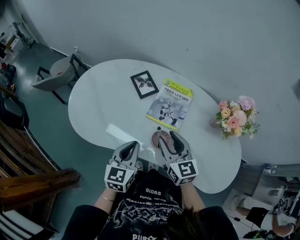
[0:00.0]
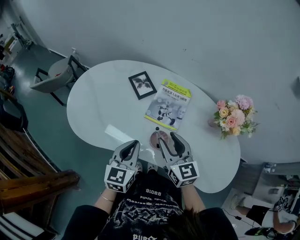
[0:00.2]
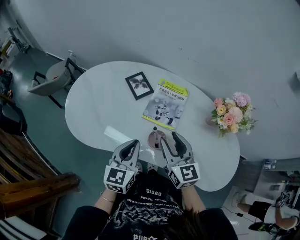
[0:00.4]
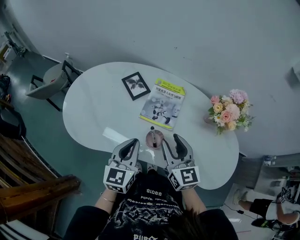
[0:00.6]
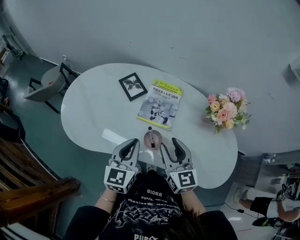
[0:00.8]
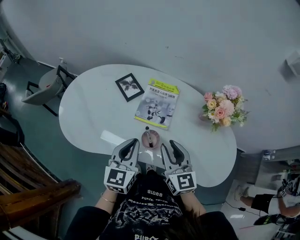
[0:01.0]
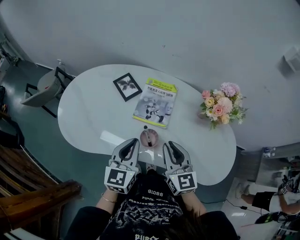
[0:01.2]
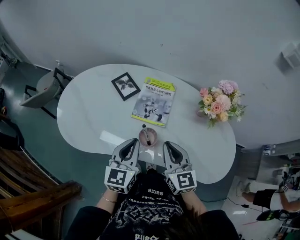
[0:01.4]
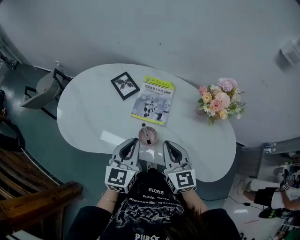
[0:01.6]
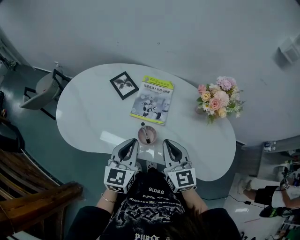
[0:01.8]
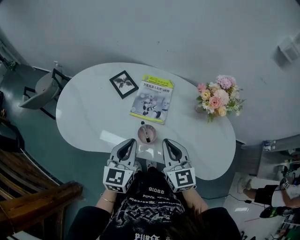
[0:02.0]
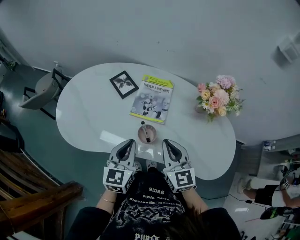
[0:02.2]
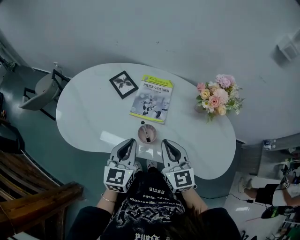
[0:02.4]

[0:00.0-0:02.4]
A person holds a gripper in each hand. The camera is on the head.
0:00.0 to 0:01.2: The right gripper is displaced to the right by some 5 cm, and closes its fingers. Meanwhile the left gripper ends up roughly 5 cm from where it was.
0:01.2 to 0:02.4: The grippers make only small movements.

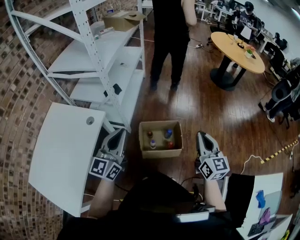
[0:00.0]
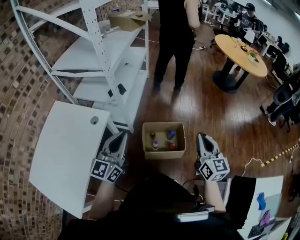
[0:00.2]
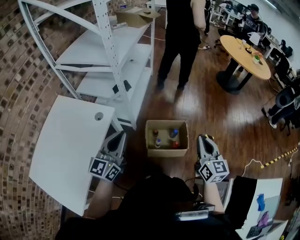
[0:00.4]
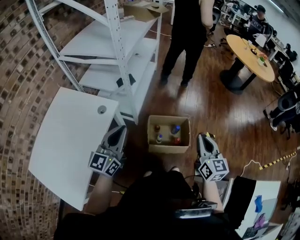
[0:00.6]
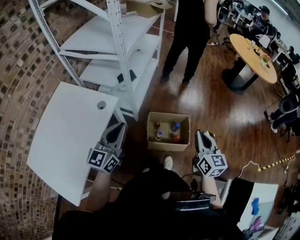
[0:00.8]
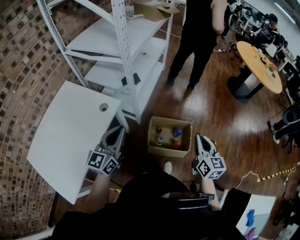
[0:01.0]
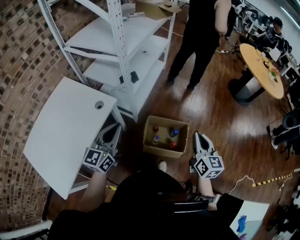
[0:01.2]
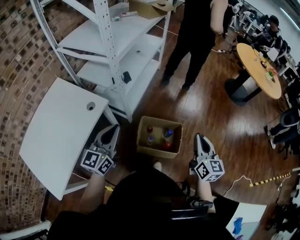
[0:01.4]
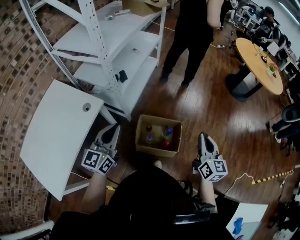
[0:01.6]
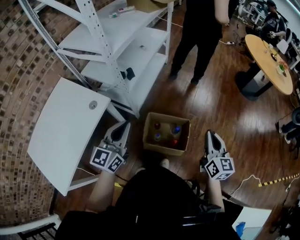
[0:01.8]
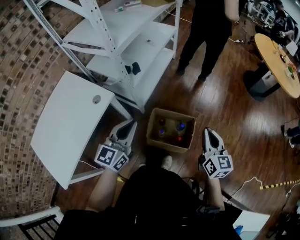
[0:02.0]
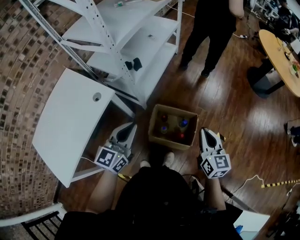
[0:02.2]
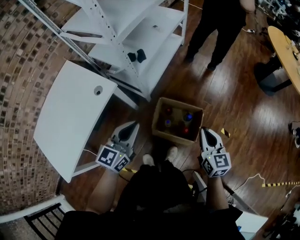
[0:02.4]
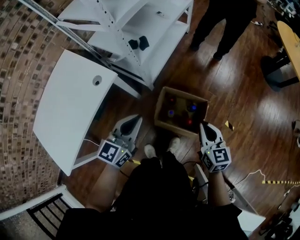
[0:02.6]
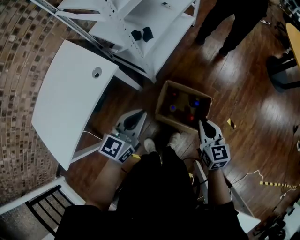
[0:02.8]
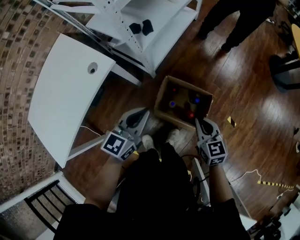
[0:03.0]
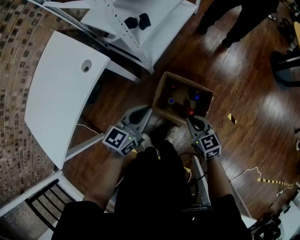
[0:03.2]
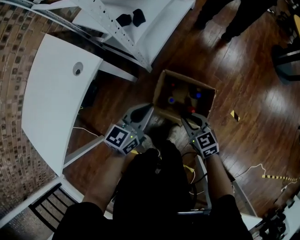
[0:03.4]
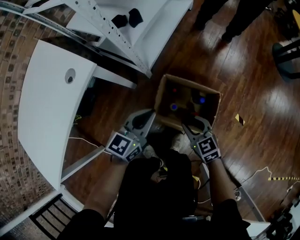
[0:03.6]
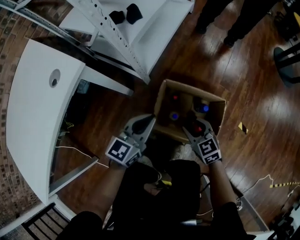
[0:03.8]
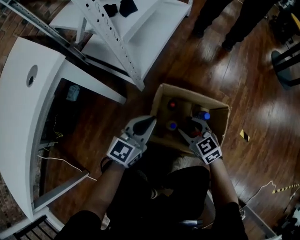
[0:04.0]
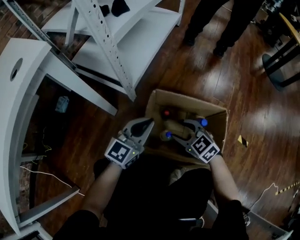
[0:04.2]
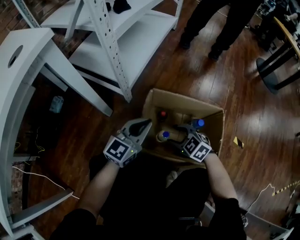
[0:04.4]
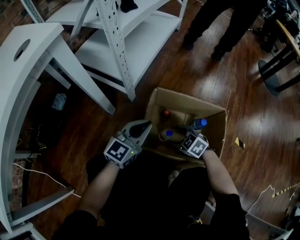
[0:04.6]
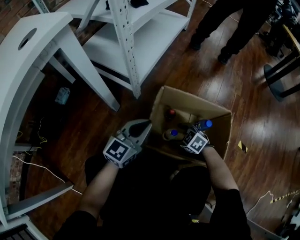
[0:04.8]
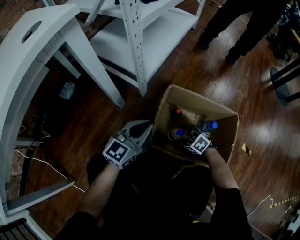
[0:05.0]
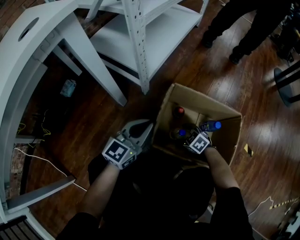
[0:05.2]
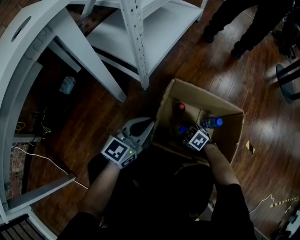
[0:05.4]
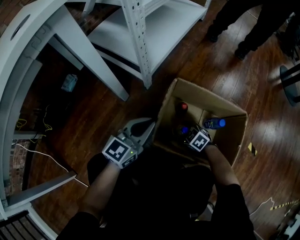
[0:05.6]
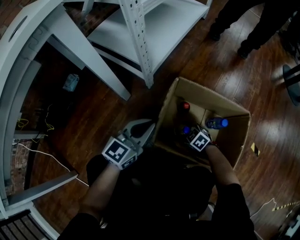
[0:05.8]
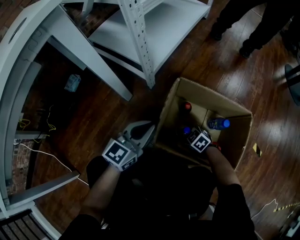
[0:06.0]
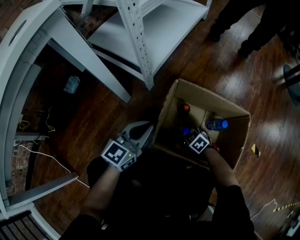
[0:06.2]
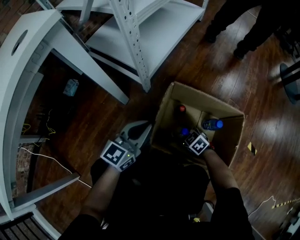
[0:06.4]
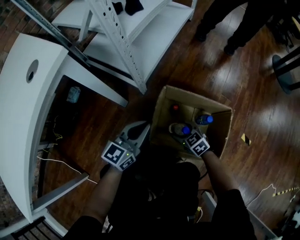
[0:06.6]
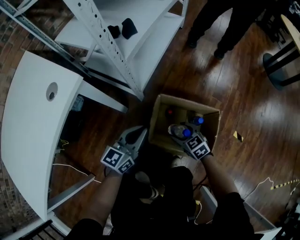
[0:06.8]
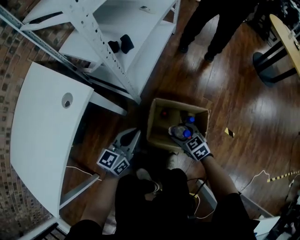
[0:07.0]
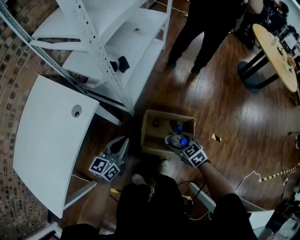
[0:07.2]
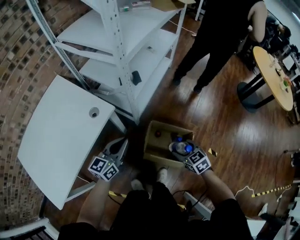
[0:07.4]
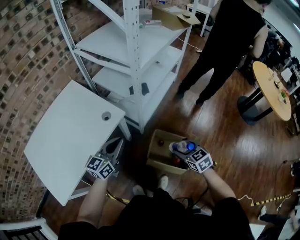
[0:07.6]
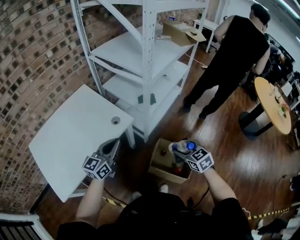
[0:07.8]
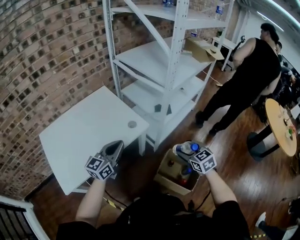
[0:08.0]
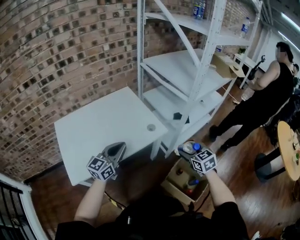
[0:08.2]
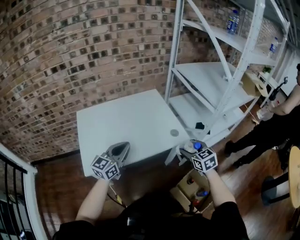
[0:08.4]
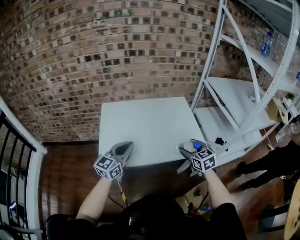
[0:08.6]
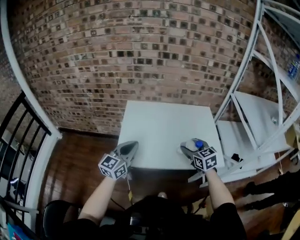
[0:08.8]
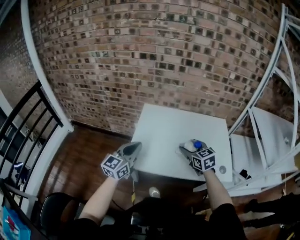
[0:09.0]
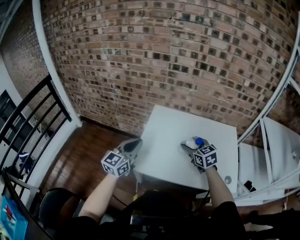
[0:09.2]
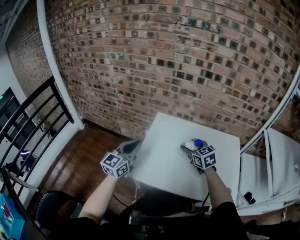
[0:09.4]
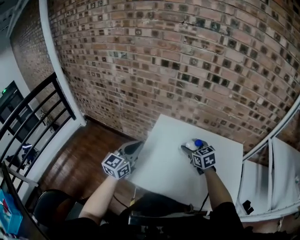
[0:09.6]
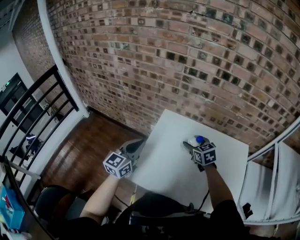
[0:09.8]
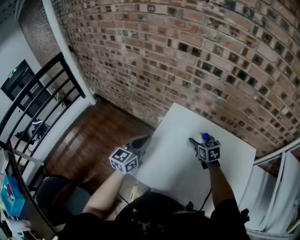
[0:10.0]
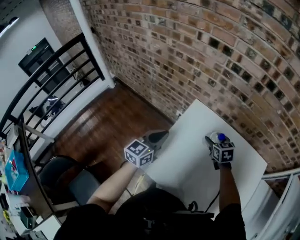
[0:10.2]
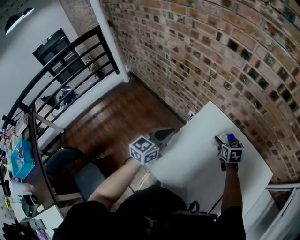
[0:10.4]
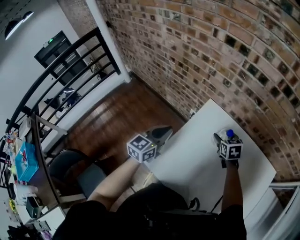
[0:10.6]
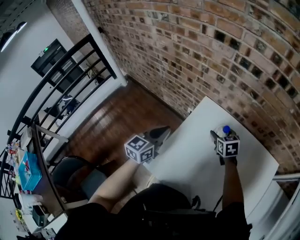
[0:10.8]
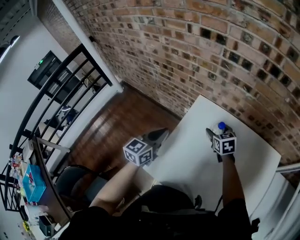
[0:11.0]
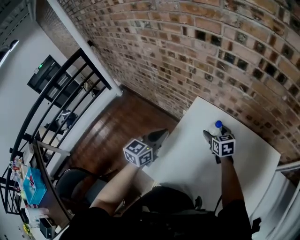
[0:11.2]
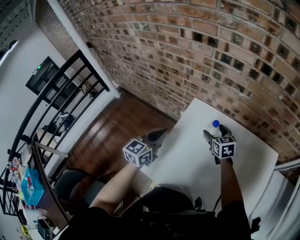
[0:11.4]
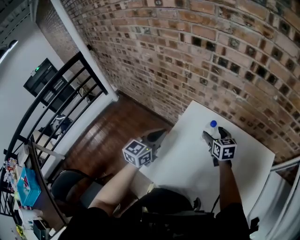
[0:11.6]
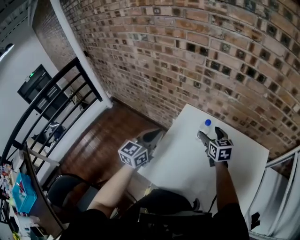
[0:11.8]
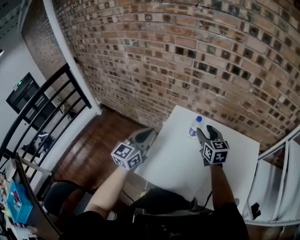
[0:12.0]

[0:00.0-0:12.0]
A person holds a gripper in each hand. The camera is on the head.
0:00.0 to 0:01.6: The right gripper is displaced forward by about 10 cm, and reaches roughly 10 cm to the left, then returns, while the left gripper moves forward, roughly 5 cm, and reaches approximately 10 cm to the left, then returns.
0:01.6 to 0:03.0: The right gripper moves downward, to the left and forward, about 25 cm, and rotates approximately 40 degrees, while the left gripper goes some 15 cm downward.
0:03.0 to 0:04.4: Both grippers move downward, roughly 50 cm. The right gripper rotates about 40 degrees, and opens its fingers; the left gripper swivels roughly 20 degrees.
0:04.4 to 0:06.0: The left gripper travels to the left and downward by some 10 cm; the right gripper heads downward, covering about 15 cm.
0:06.0 to 0:07.6: Both grippers move upward, roughly 70 cm. The right gripper swivels about 30 degrees.
0:07.6 to 0:09.0: The two grippers travel together, some 60 cm. The left gripper turns by some 60 degrees. Meanwhile the right gripper changes its angle by roughly 60 degrees.
0:09.0 to 0:10.4: The left gripper travels forward by some 20 cm, and swivels roughly 20 degrees; the right gripper is displaced forward and downward by about 35 cm.
0:10.4 to 0:12.0: The left gripper moves upward, roughly 10 cm. The right gripper travels upward and backward by roughly 15 cm, and turns by approximately 30 degrees.

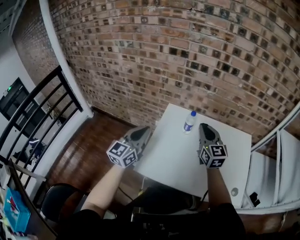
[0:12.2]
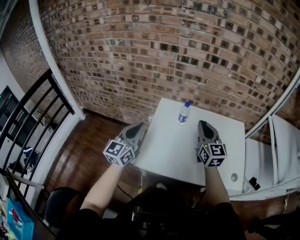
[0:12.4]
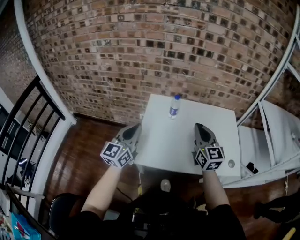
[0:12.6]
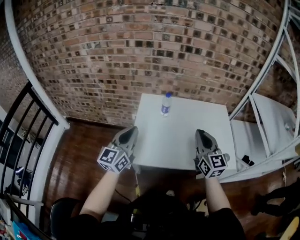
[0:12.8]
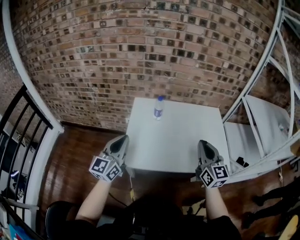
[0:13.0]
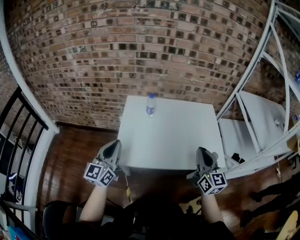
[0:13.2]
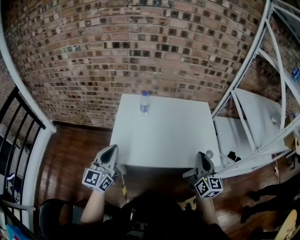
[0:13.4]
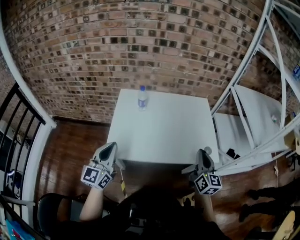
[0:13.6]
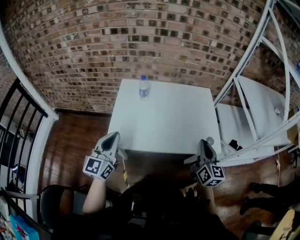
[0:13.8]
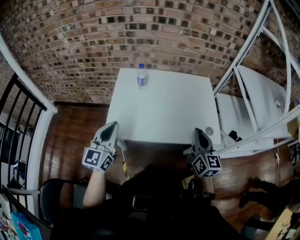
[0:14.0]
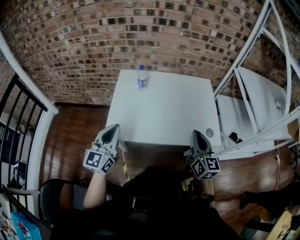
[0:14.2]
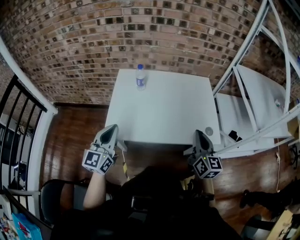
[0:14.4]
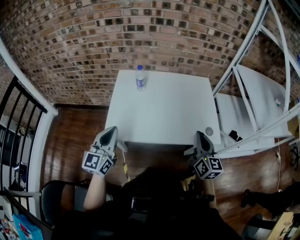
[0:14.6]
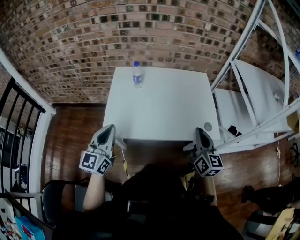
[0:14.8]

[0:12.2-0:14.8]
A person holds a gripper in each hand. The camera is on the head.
0:12.2 to 0:13.4: The left gripper shifts about 15 cm backward and to the right. The right gripper heads backward and to the right, covering roughly 35 cm, and rotates approximately 30 degrees.
0:13.4 to 0:14.8: The left gripper ends up roughly 5 cm from where it was.

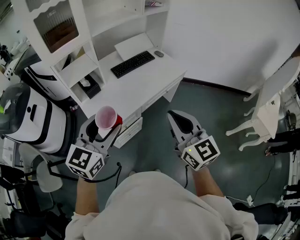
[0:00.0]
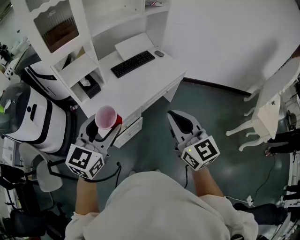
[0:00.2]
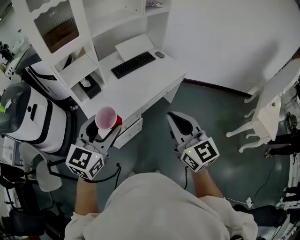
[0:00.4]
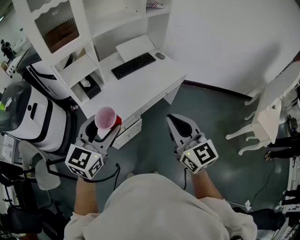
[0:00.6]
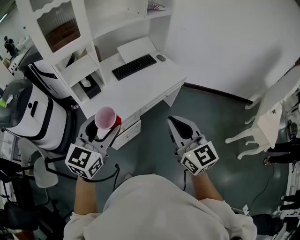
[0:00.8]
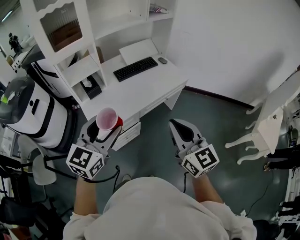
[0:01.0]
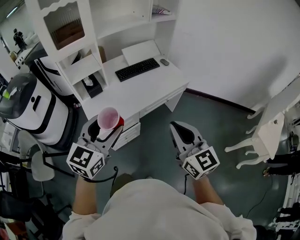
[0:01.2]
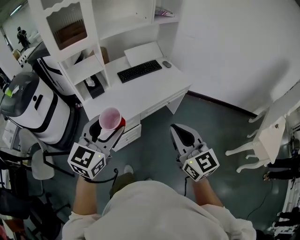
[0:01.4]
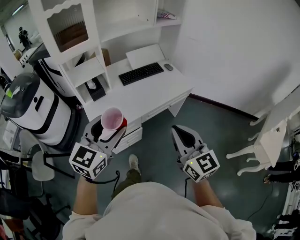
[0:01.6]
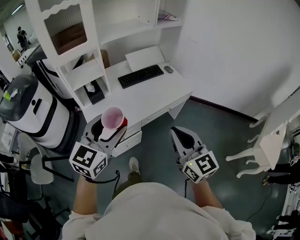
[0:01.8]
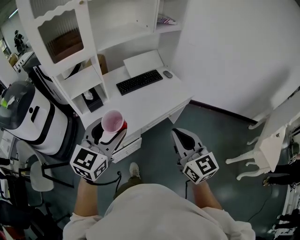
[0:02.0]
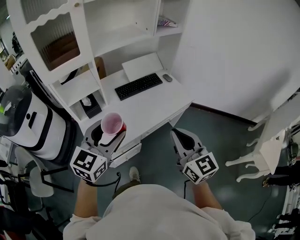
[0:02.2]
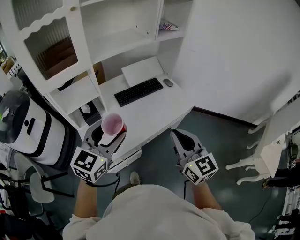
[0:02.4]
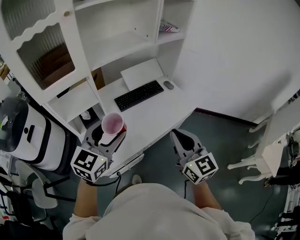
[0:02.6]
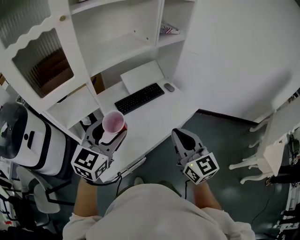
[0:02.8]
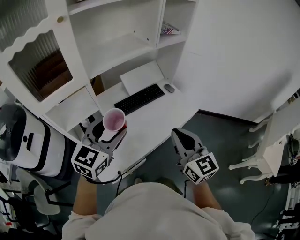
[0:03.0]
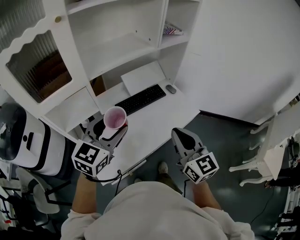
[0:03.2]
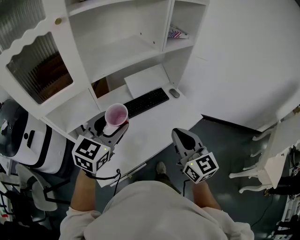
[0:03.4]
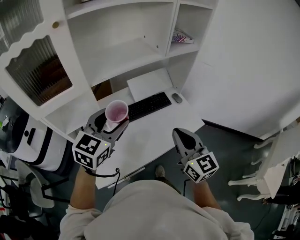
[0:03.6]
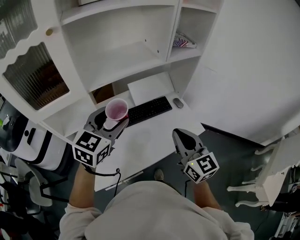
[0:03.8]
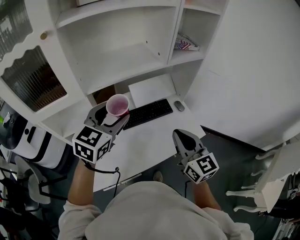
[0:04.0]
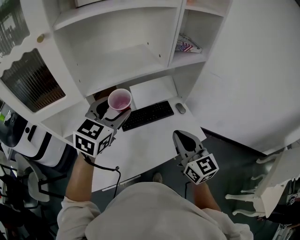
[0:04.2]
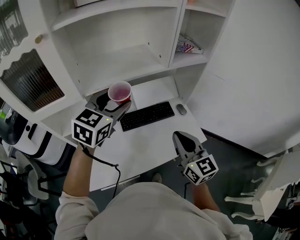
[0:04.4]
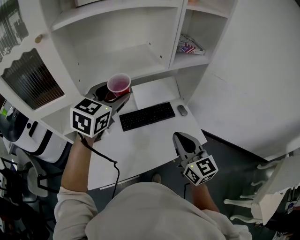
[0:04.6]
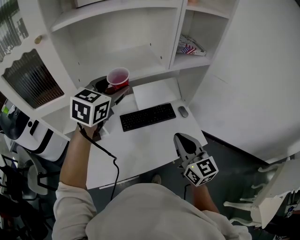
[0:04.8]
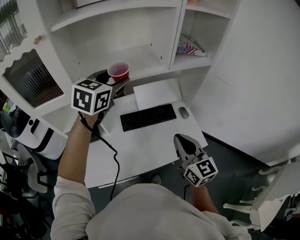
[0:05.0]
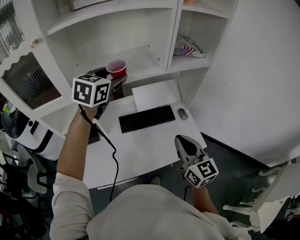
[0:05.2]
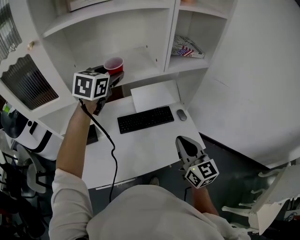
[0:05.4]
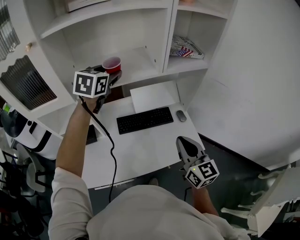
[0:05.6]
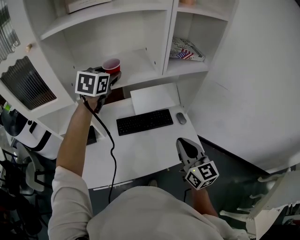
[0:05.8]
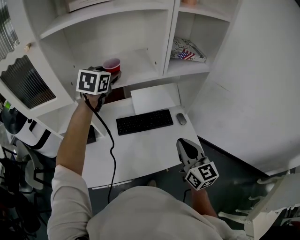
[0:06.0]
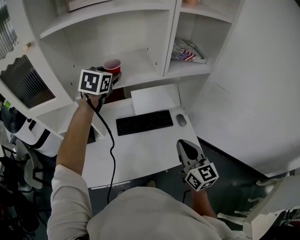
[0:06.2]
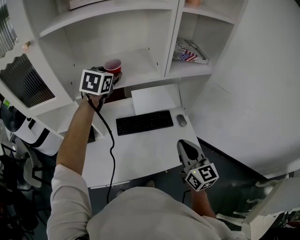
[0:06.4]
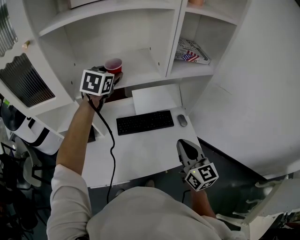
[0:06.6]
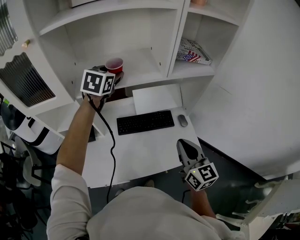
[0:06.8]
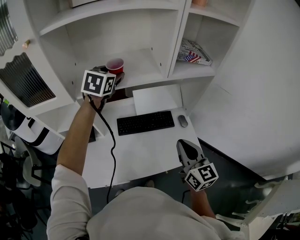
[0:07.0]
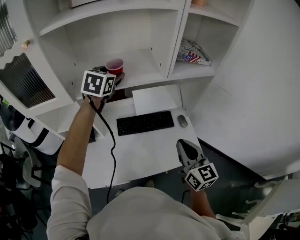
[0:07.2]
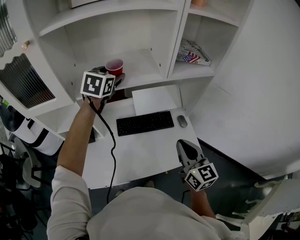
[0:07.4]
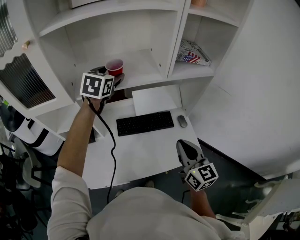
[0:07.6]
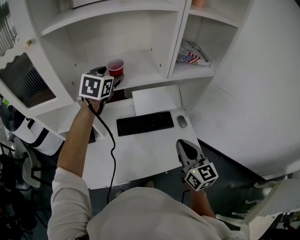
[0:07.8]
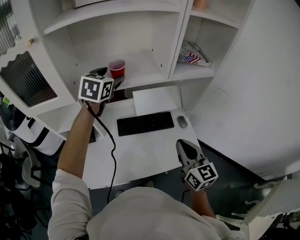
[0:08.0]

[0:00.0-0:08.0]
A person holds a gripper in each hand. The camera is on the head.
0:00.0 to 0:01.6: Both grippers travel together to the right, approximately 5 cm.
0:01.6 to 0:03.2: The two grippers go some 30 cm forward.
0:03.2 to 0:04.8: The left gripper heads forward, covering some 25 cm. The right gripper travels forward and to the right by approximately 20 cm.
0:04.8 to 0:06.4: The right gripper travels to the right by approximately 5 cm. The left gripper heads forward, covering roughly 15 cm.
0:06.4 to 0:08.0: There are only small adjustments of the grippers.
